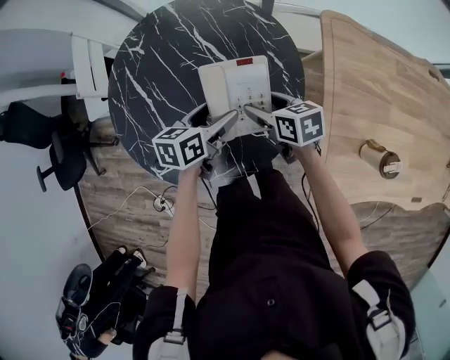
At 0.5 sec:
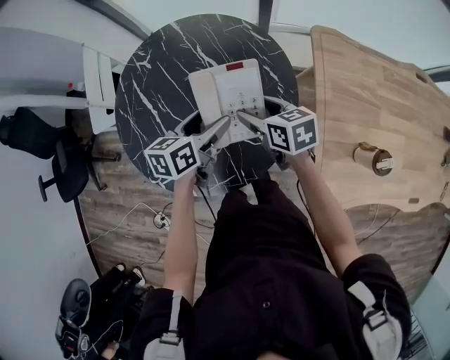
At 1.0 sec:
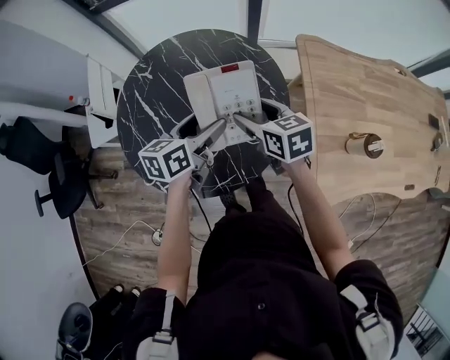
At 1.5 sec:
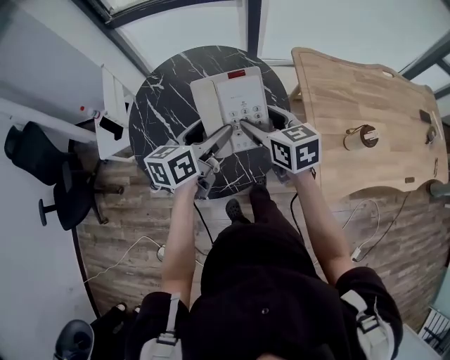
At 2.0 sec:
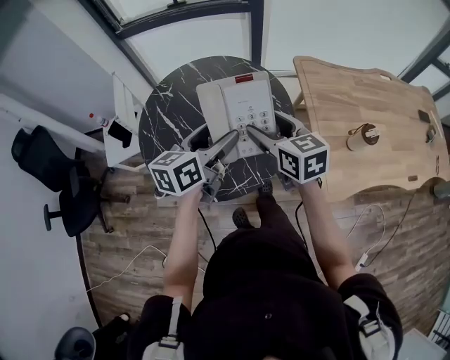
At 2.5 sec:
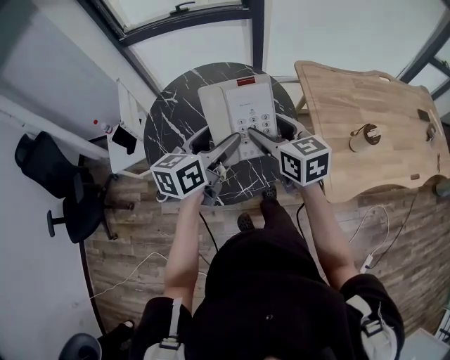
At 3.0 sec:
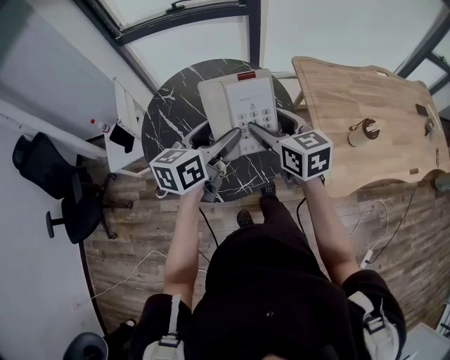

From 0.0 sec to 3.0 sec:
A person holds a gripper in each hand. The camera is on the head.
From 0.0 sec to 1.5 sec: Both grippers move upward and backward, about 20 cm. The left gripper turns by approximately 20 degrees; the right gripper swivels roughly 30 degrees.
From 1.5 sec to 3.0 sec: The grippers both shift upward by approximately 5 cm.

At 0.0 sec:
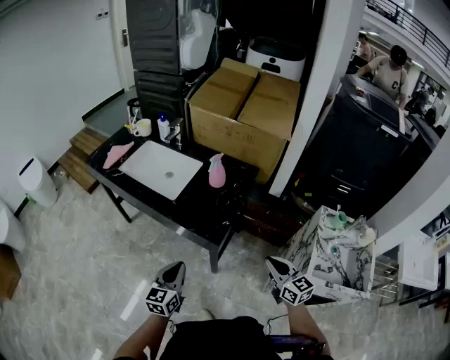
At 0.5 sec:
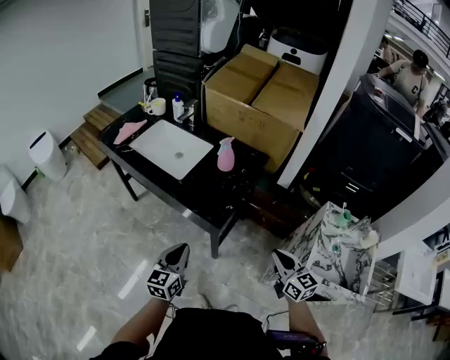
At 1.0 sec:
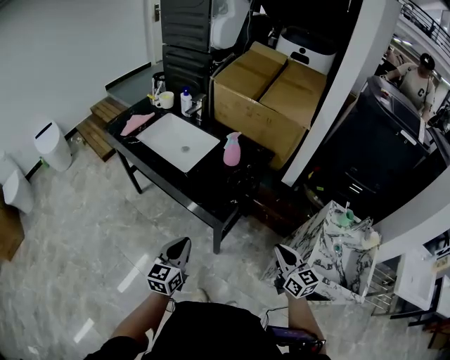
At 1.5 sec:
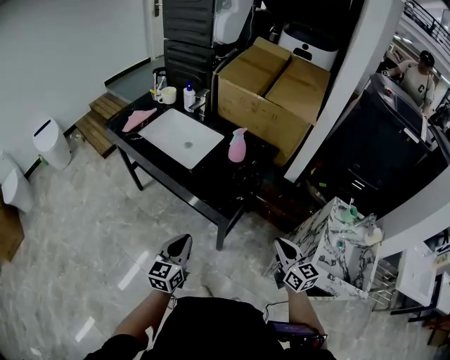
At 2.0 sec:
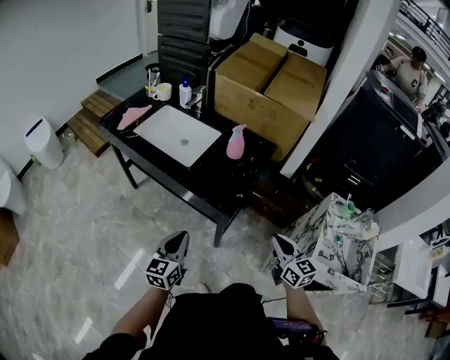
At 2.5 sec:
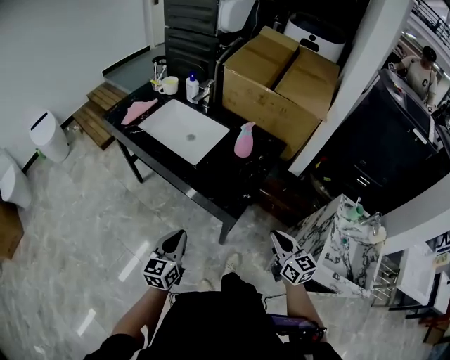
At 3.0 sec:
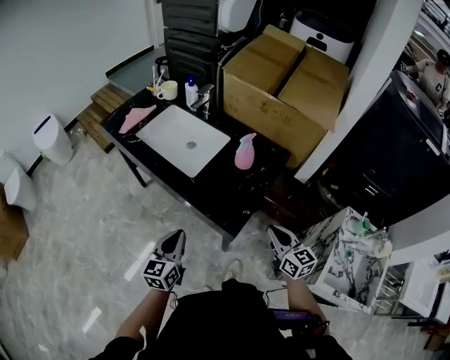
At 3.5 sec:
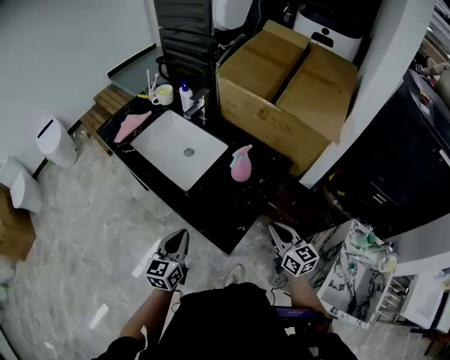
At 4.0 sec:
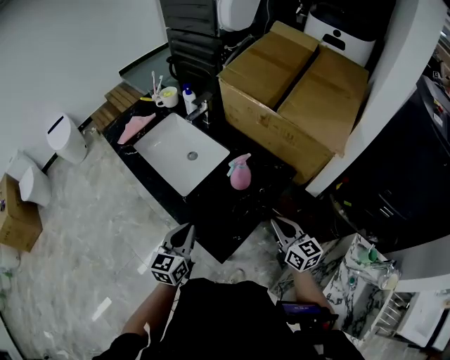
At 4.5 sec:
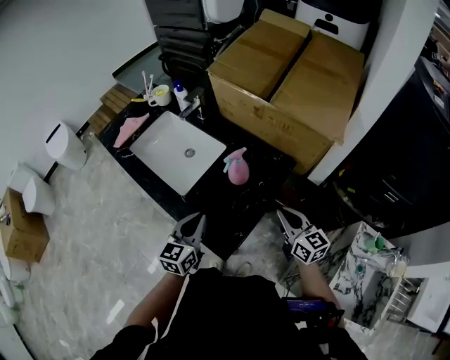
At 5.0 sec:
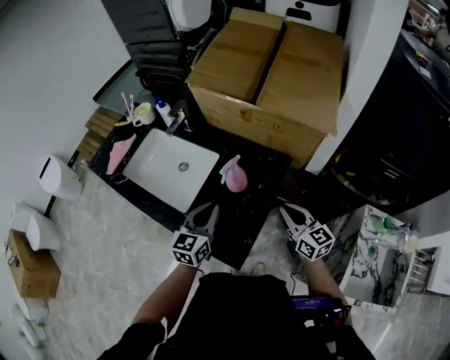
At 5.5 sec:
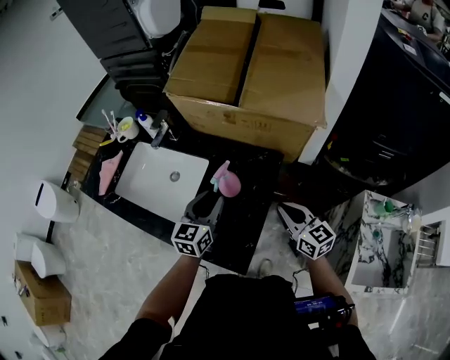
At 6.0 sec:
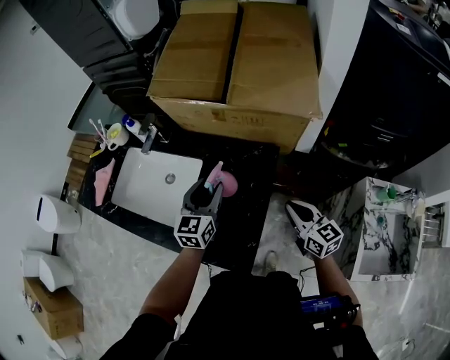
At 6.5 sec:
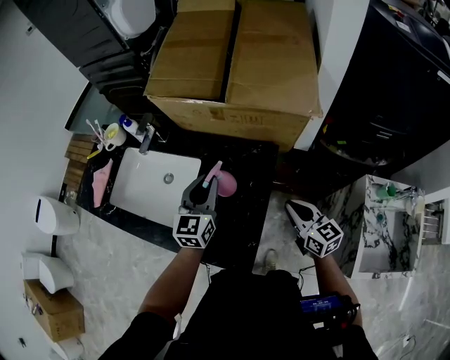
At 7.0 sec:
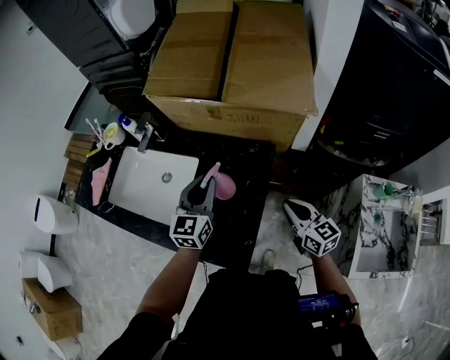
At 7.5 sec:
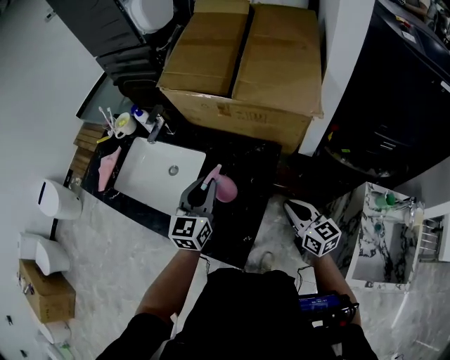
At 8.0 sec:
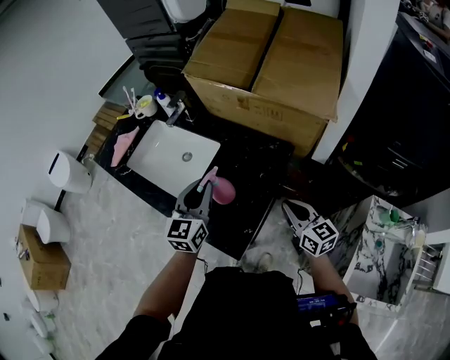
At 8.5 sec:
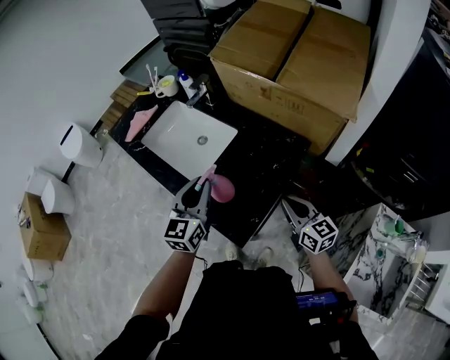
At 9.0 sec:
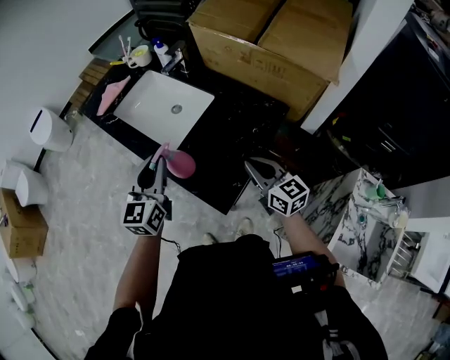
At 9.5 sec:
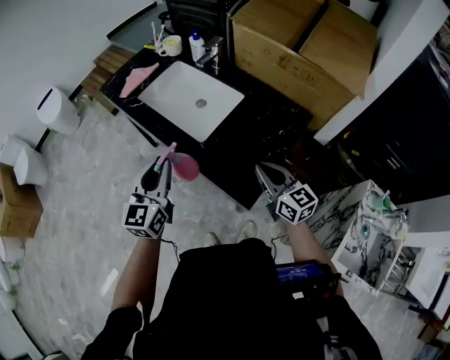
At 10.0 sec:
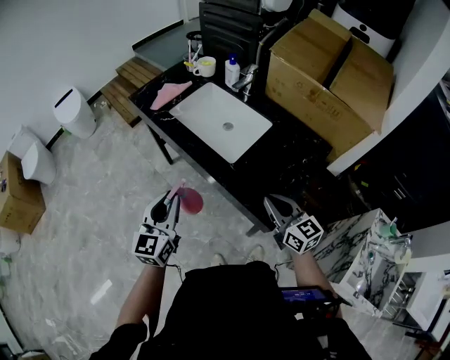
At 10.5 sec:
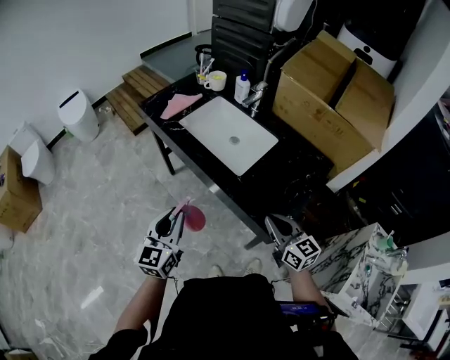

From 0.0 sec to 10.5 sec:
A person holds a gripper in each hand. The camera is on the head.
From 0.0 sec to 2.0 sec: There are only small adjustments of the grippers.
From 2.0 sec to 4.0 sec: The left gripper goes about 20 cm forward and to the right; the right gripper is displaced forward by some 25 cm.
From 4.0 sec to 6.5 sec: The left gripper moves forward and to the right, some 25 cm, rotates approximately 20 degrees, and opens and closes again. Meanwhile the right gripper moves about 5 cm, and changes its angle by some 20 degrees.
From 6.5 sec to 8.5 sec: The right gripper is displaced to the left by about 5 cm, and turns by roughly 20 degrees. Meanwhile the left gripper is displaced backward and to the left by some 15 cm, and turns by some 20 degrees.
From 8.5 sec to 10.5 sec: Both grippers move to the left, approximately 25 cm.

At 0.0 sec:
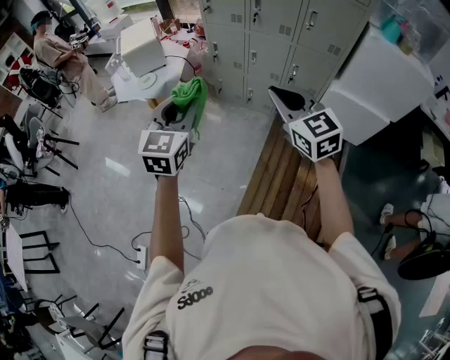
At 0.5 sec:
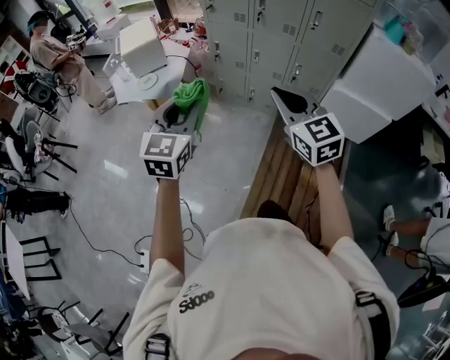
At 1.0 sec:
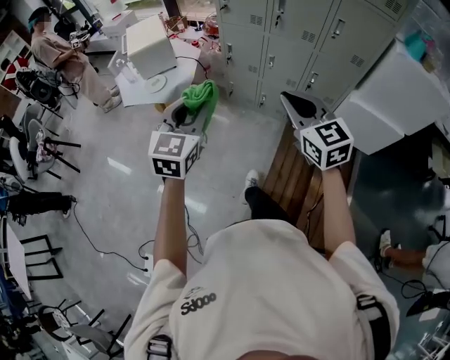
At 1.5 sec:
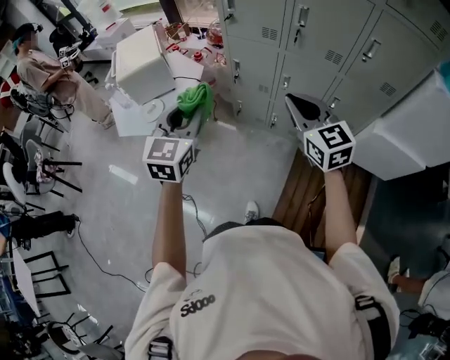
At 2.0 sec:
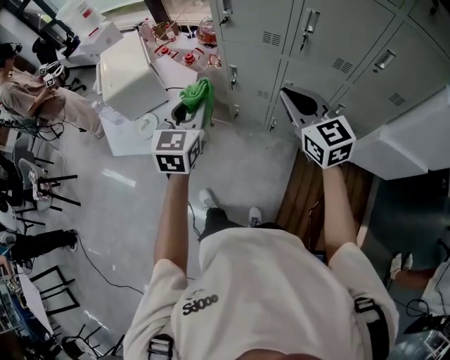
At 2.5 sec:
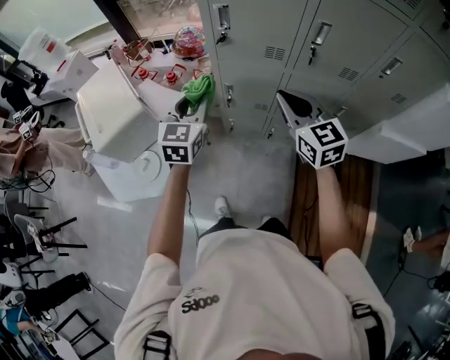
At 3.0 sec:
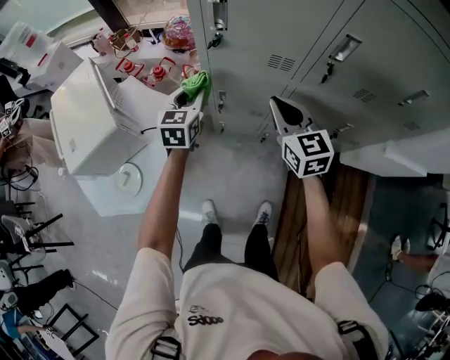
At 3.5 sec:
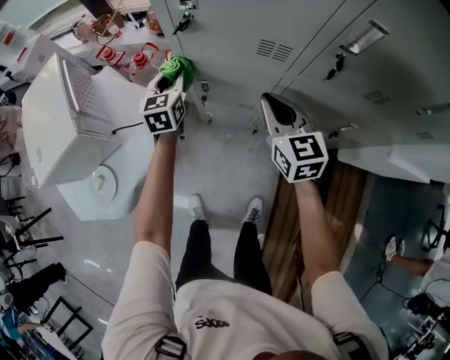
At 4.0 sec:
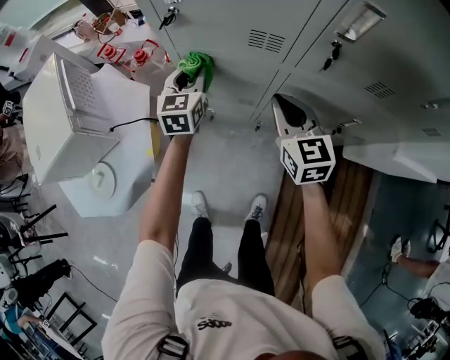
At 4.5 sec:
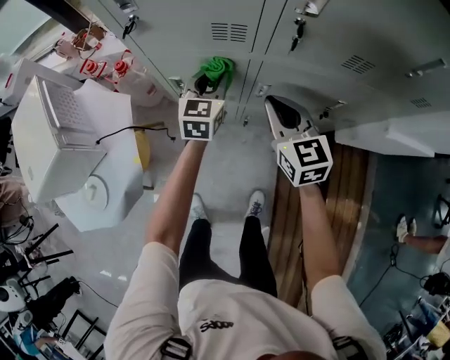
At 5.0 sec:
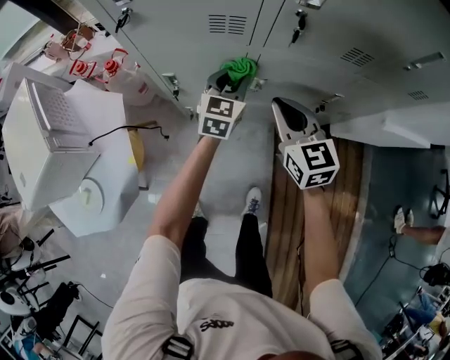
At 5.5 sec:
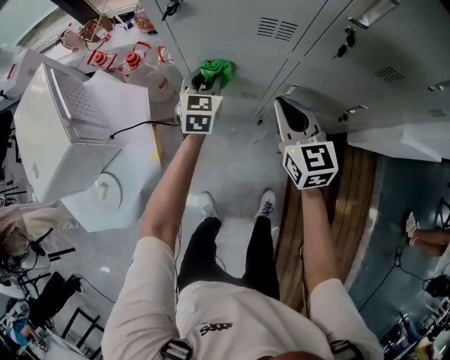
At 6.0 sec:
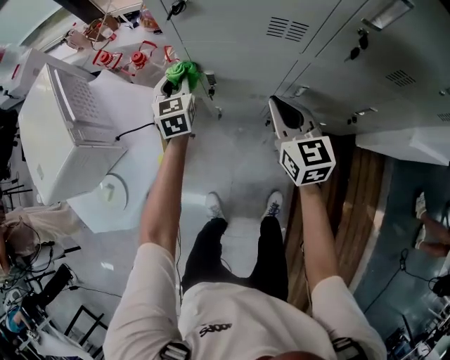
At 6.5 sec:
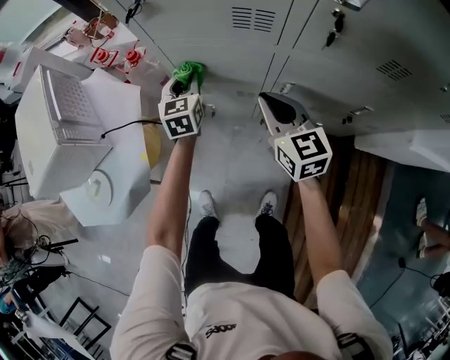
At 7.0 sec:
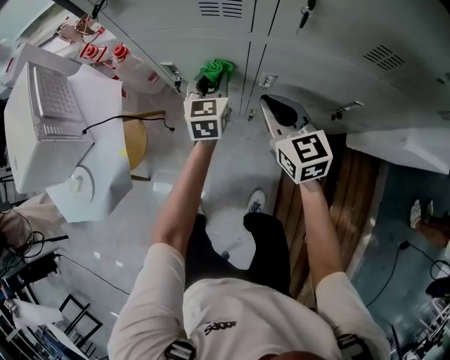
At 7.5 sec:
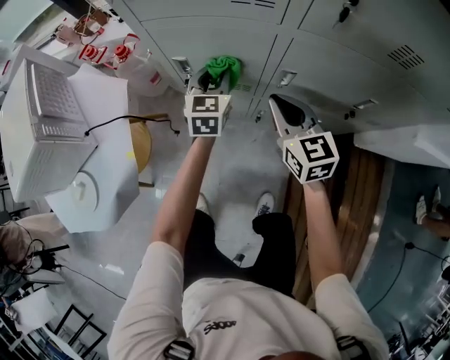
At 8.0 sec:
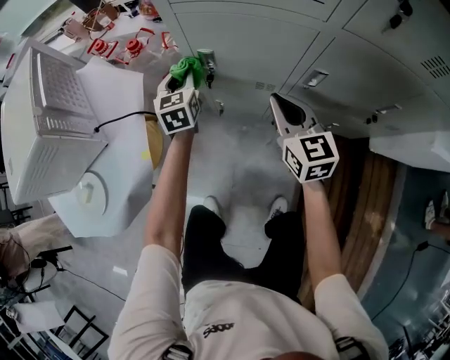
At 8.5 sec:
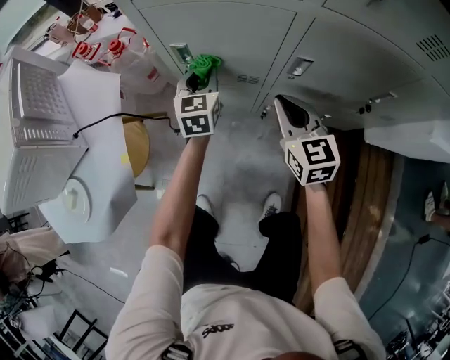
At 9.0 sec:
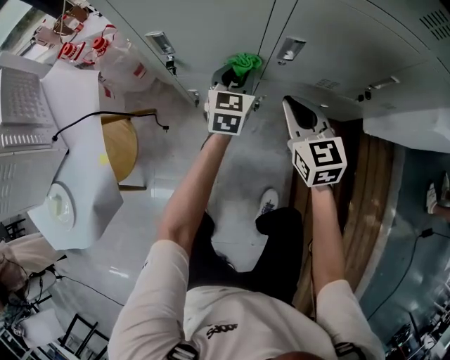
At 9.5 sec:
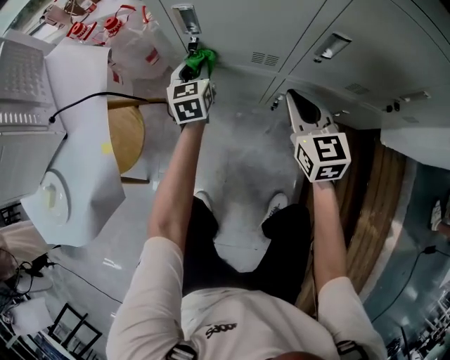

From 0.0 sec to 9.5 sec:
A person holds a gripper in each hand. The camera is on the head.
From 0.0 sec to 2.0 sec: The pair of grippers is taken forward, roughly 50 cm.
From 2.0 sec to 4.0 sec: The two grippers go about 40 cm forward and downward. The right gripper turns by approximately 20 degrees.
From 4.0 sec to 5.5 sec: The right gripper goes to the right and returns, about 5 cm each way. Meanwhile the left gripper shifts about 5 cm downward, and travels to the right and back again, some 20 cm each way.
From 5.5 sec to 7.5 sec: The left gripper goes left and right, some 20 cm each way, reversing 2 times, while the right gripper travels downward by about 10 cm.
From 7.5 sec to 9.5 sec: The right gripper is displaced downward by some 20 cm. The left gripper moves left and right over approximately 25 cm, changing direction 2 times.

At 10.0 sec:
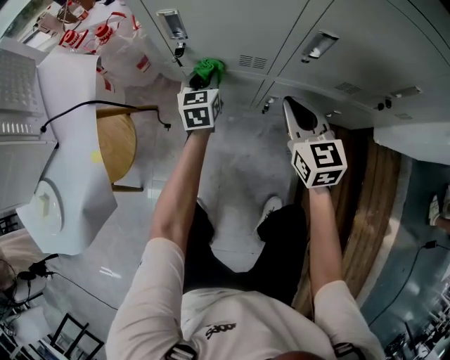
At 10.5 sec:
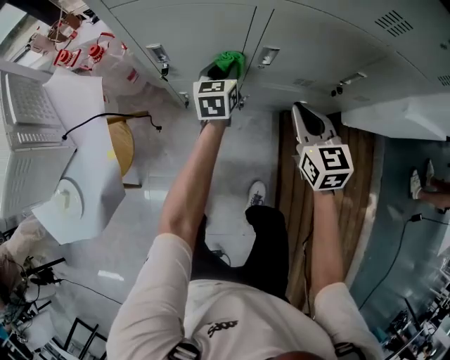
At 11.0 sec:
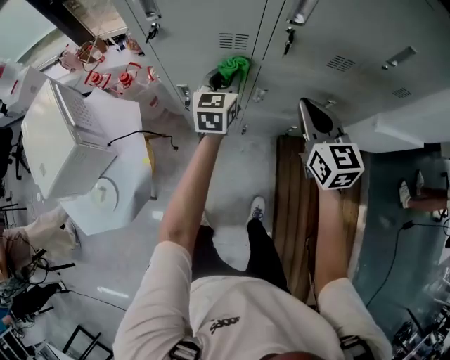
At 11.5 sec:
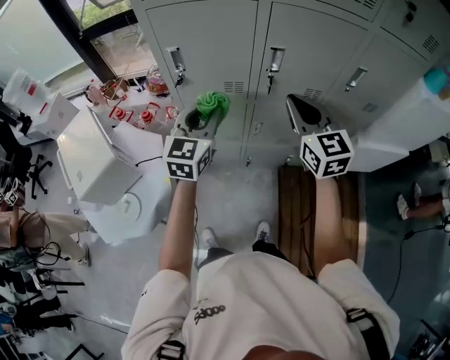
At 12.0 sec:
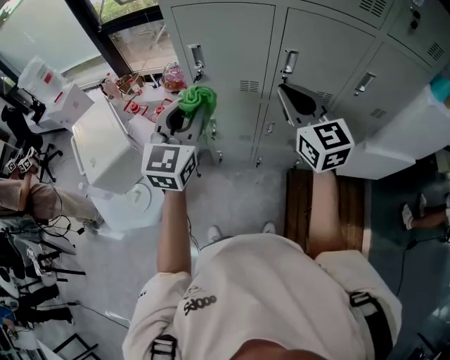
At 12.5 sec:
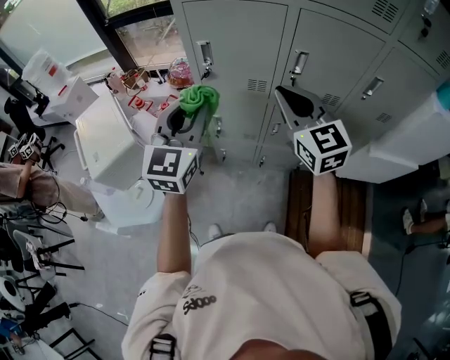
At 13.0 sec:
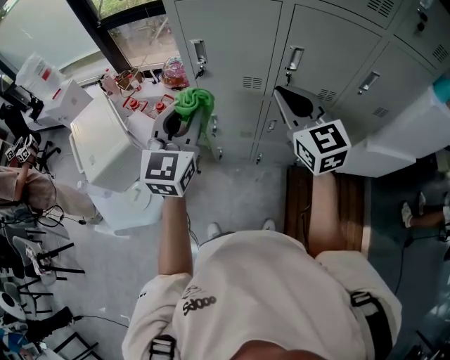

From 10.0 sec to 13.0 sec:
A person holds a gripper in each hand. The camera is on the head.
From 10.0 sec to 11.5 sec: The two grippers go about 60 cm upward. The left gripper rotates about 30 degrees.
From 11.5 sec to 13.0 sec: The right gripper goes roughly 10 cm to the left. The left gripper shifts about 15 cm to the left, upward and backward.
